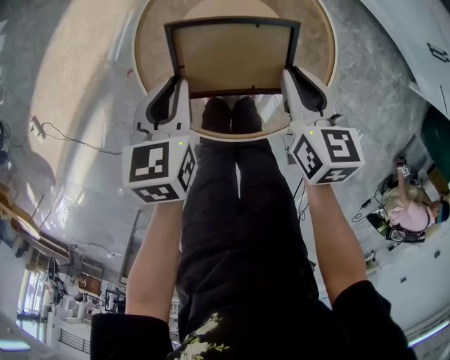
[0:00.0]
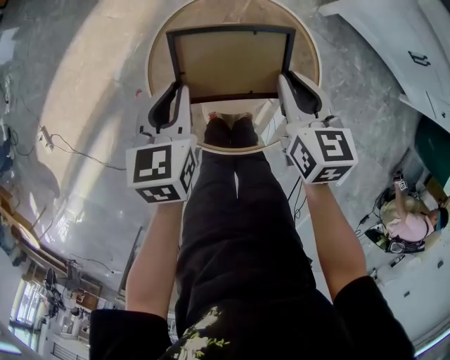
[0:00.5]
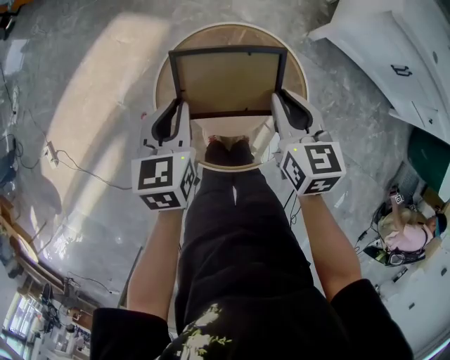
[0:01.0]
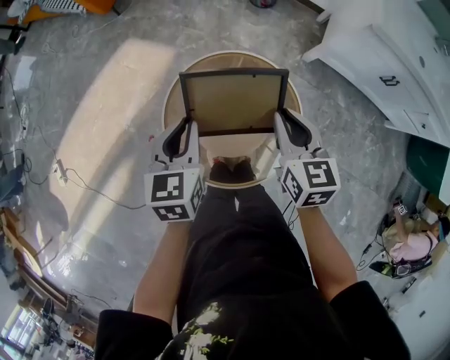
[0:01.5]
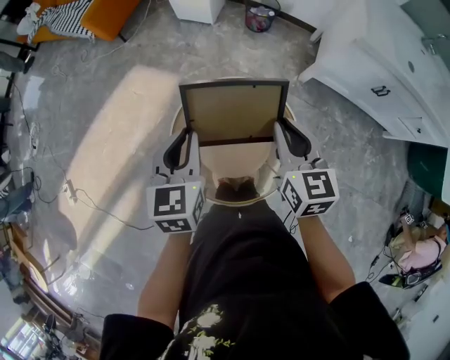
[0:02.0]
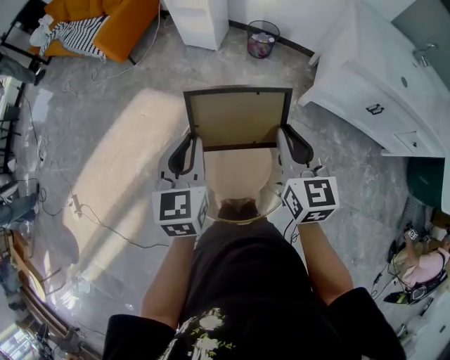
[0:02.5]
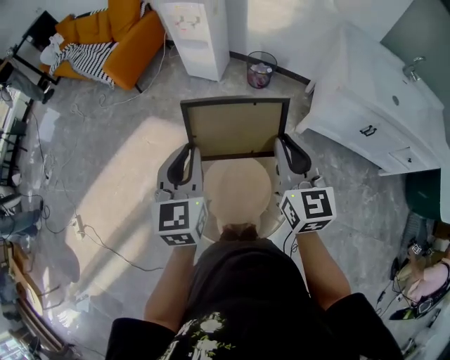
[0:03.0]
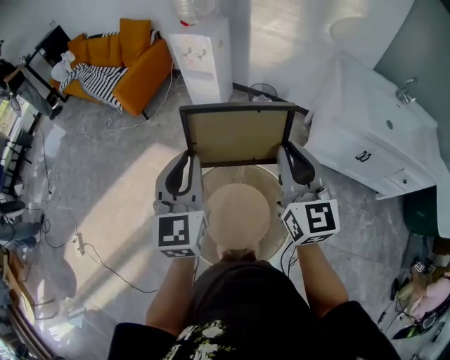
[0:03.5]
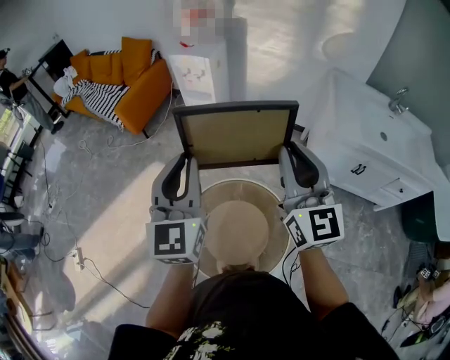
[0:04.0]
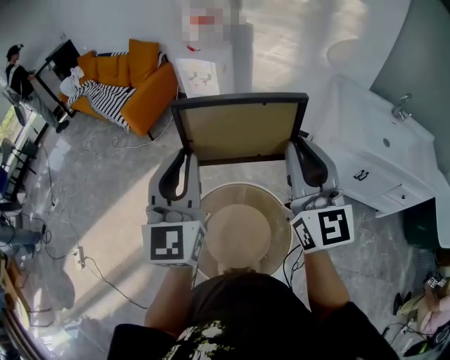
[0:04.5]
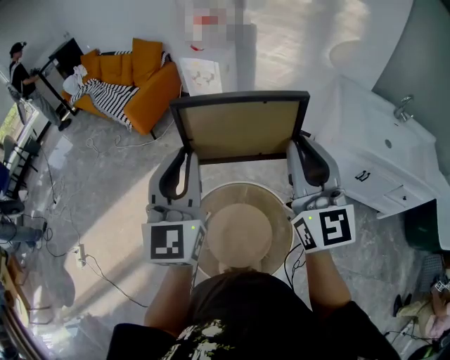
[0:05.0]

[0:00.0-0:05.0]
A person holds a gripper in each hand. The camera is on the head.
0:00.0 to 0:02.5: Both grippers travel together upward, about 40 cm. The left gripper changes its angle by approximately 30 degrees; the right gripper changes its angle by roughly 30 degrees.
0:02.5 to 0:05.0: Both grippers travel together upward, approximately 30 cm. The left gripper tilts its fingers some 30 degrees upward. Meanwhile the right gripper tips its fingers upward by about 30 degrees.

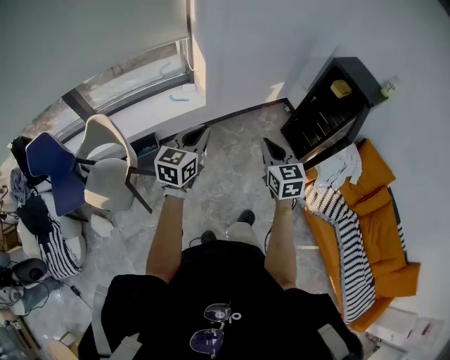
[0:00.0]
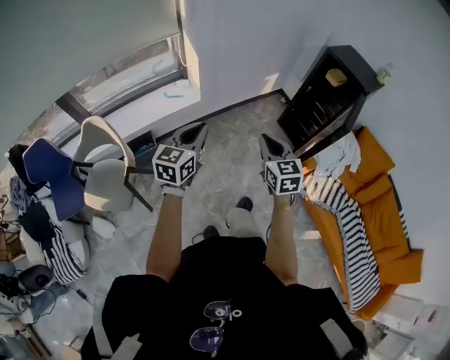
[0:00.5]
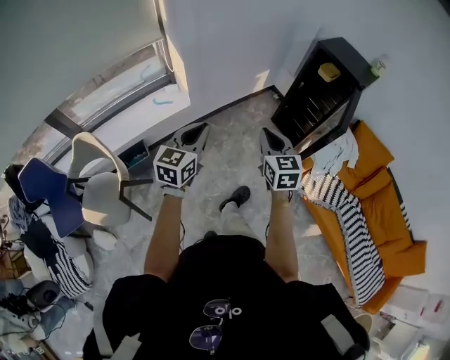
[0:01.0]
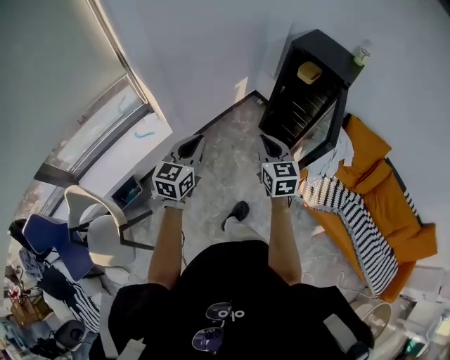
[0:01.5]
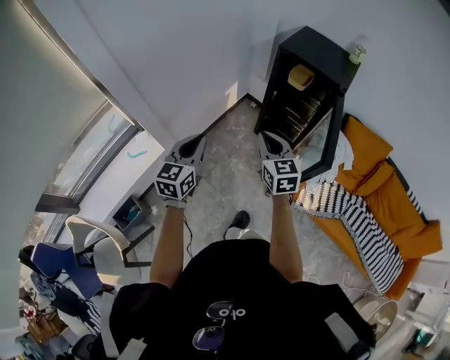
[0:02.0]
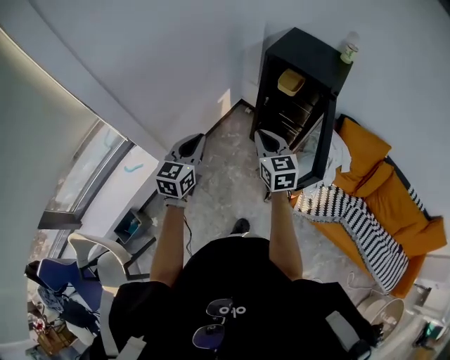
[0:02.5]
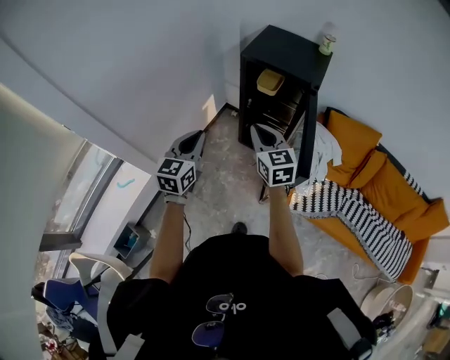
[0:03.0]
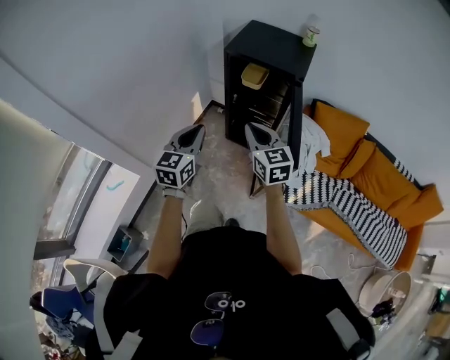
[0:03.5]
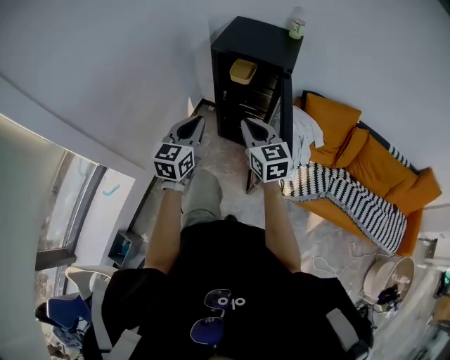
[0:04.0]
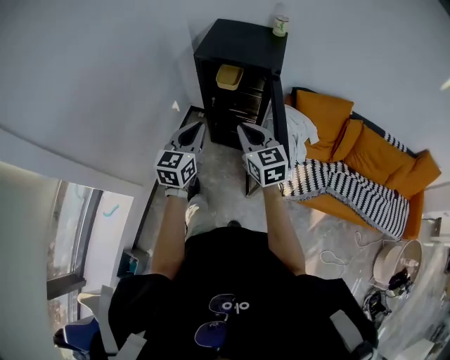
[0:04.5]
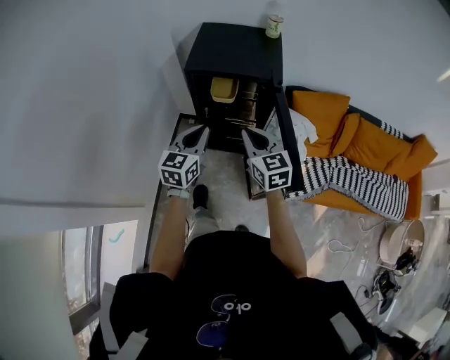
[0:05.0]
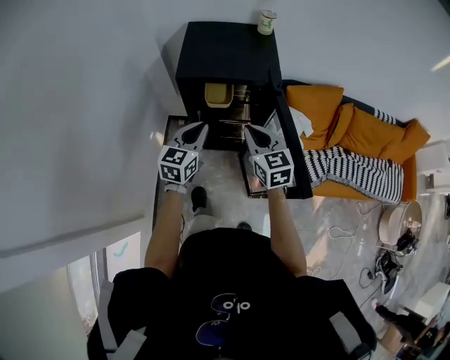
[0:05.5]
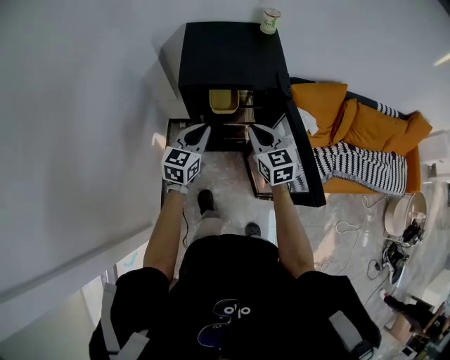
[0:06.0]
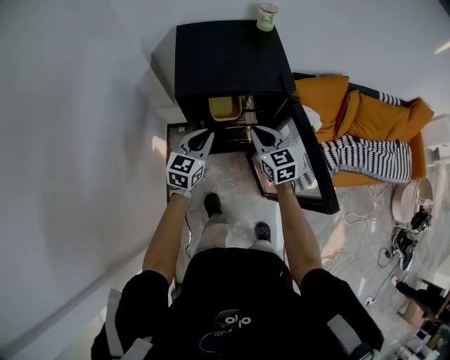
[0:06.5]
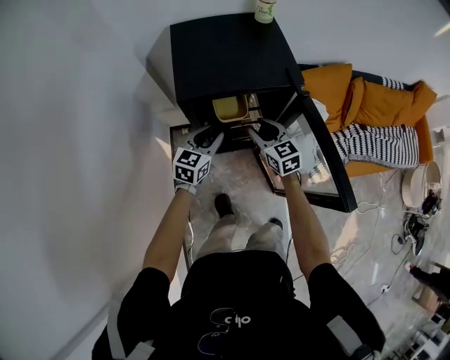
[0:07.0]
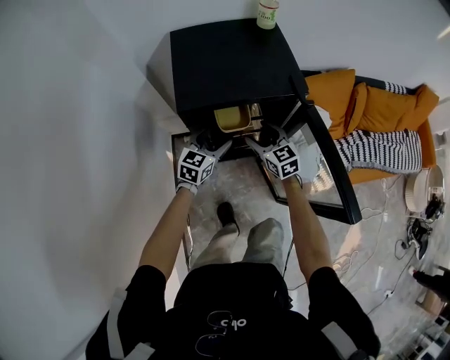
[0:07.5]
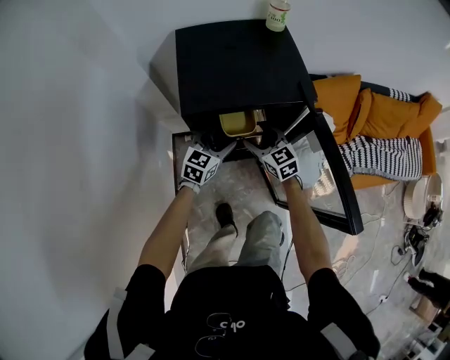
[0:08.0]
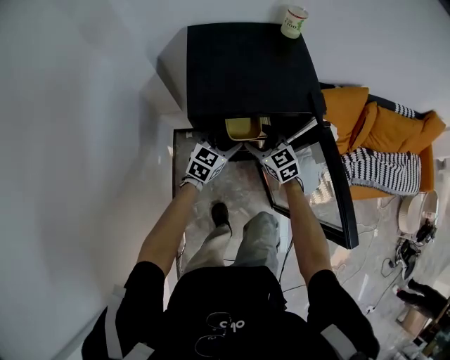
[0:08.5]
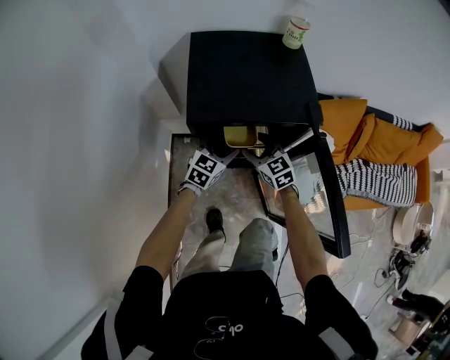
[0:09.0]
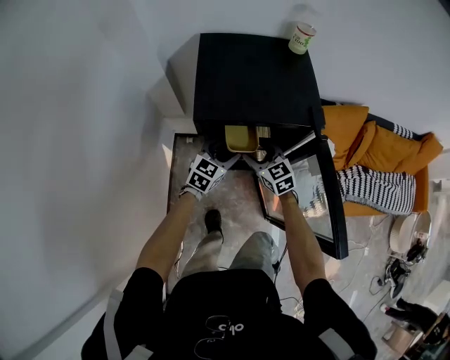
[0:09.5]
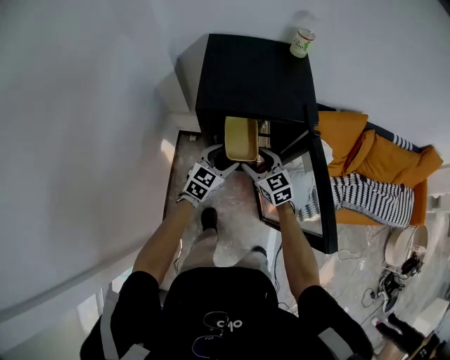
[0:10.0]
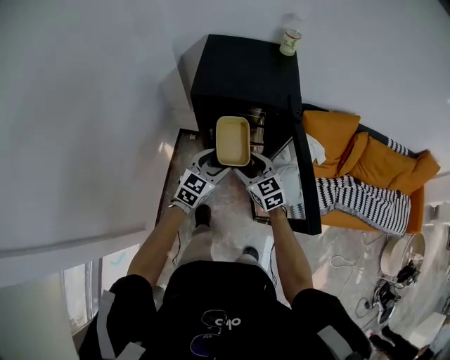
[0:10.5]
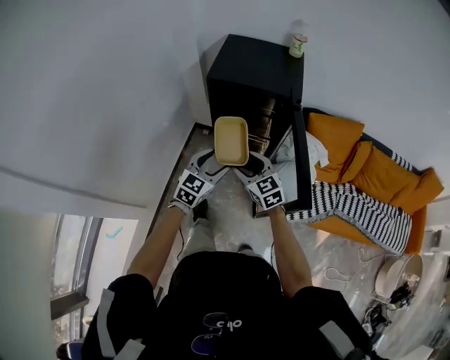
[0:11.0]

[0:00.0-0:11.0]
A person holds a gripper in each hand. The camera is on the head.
0:00.0 to 0:02.0: The grippers both shift forward and to the right by approximately 35 cm. The right gripper swivels roughly 20 degrees.
0:02.0 to 0:03.5: Both grippers travel together to the right and forward, some 15 cm.
0:03.5 to 0:05.5: The grippers both shift forward by about 20 cm. The right gripper swivels approximately 20 degrees. The left gripper rotates approximately 30 degrees.
0:05.5 to 0:07.5: Both grippers move downward and forward, roughly 20 cm. The right gripper opens; the left gripper rotates roughly 20 degrees, and opens up.
0:07.5 to 0:09.0: The right gripper changes place by approximately 5 cm.
0:09.0 to 0:11.0: Both grippers move backward and upward, about 30 cm.

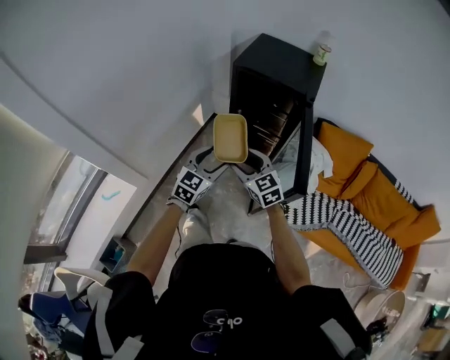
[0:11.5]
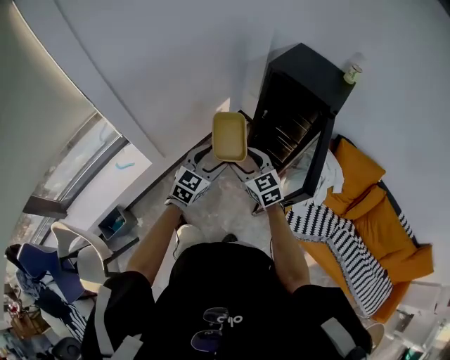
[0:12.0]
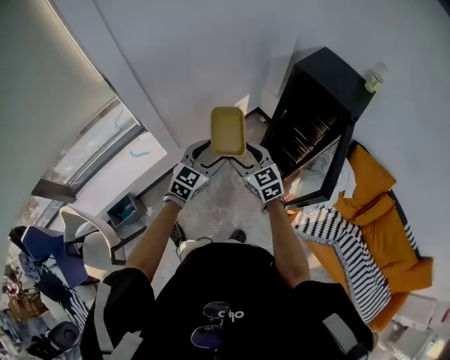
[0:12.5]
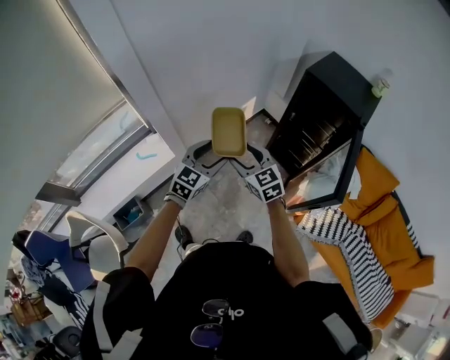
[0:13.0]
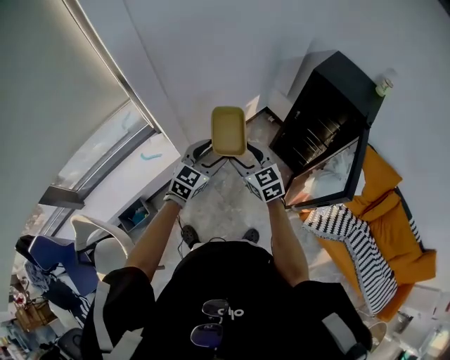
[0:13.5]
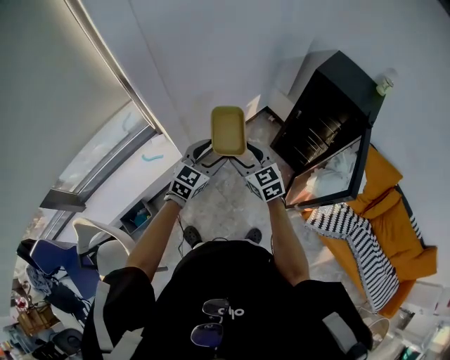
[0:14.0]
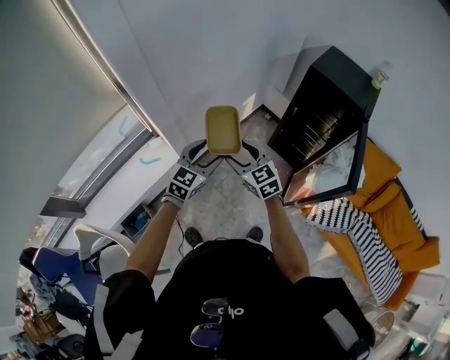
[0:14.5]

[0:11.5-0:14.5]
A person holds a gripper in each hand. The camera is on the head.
0:11.5 to 0:13.0: The two grippers go approximately 20 cm to the left.
0:13.0 to 0:14.5: Both grippers travel together to the left, approximately 10 cm.

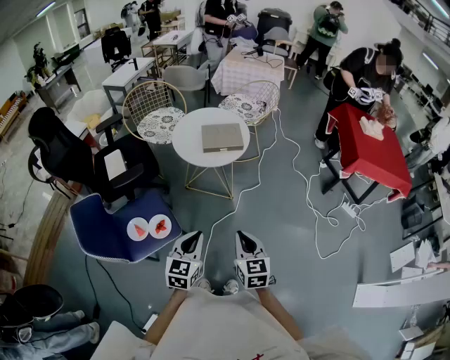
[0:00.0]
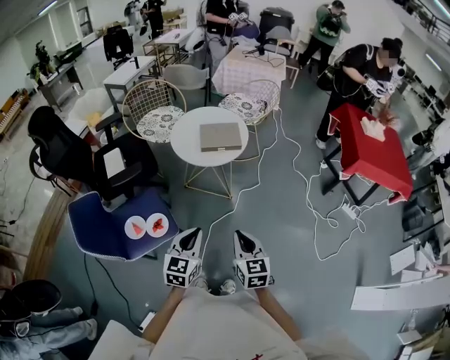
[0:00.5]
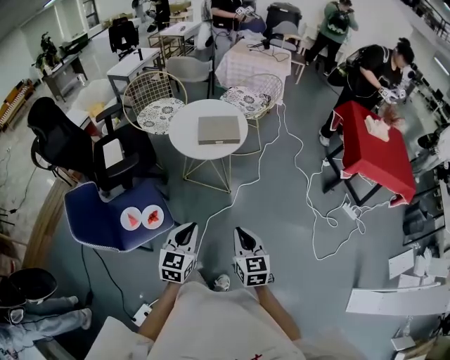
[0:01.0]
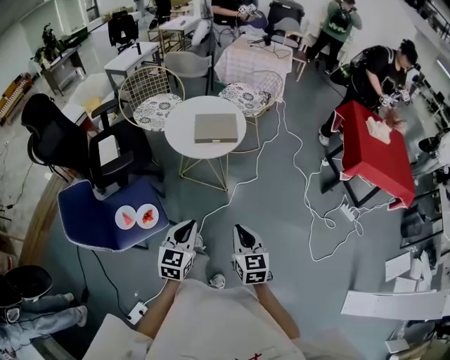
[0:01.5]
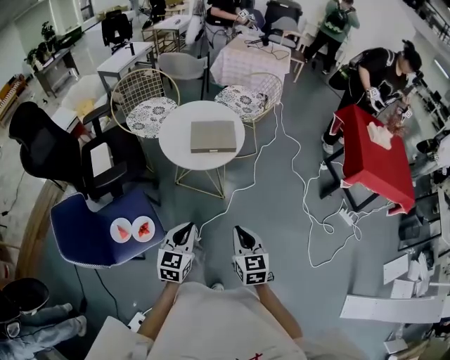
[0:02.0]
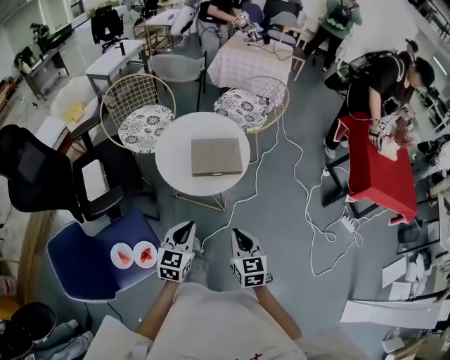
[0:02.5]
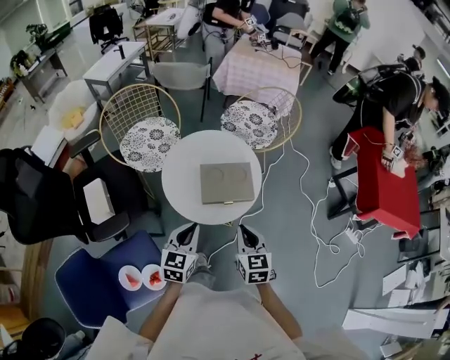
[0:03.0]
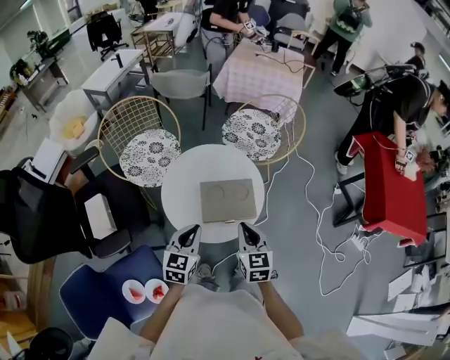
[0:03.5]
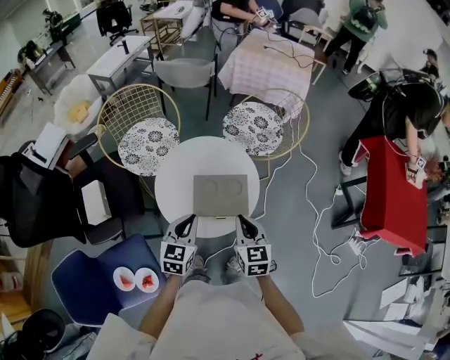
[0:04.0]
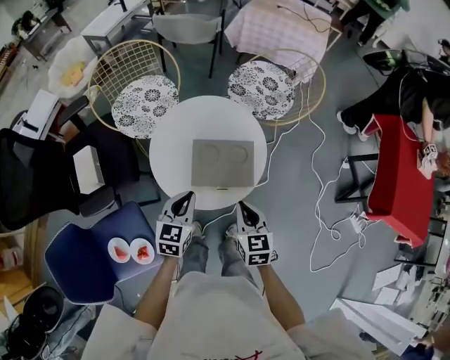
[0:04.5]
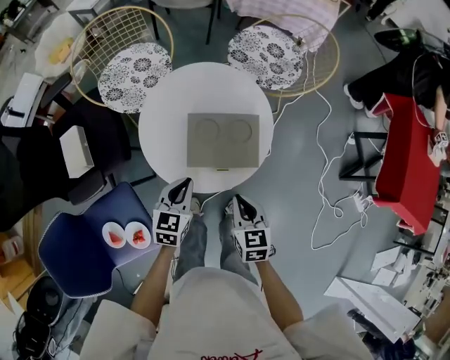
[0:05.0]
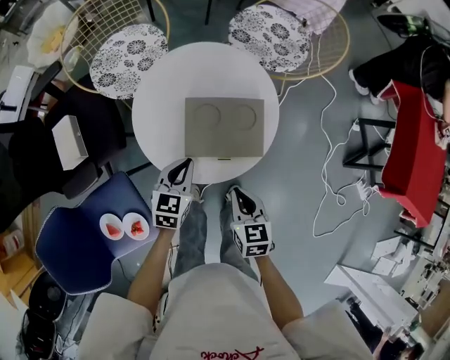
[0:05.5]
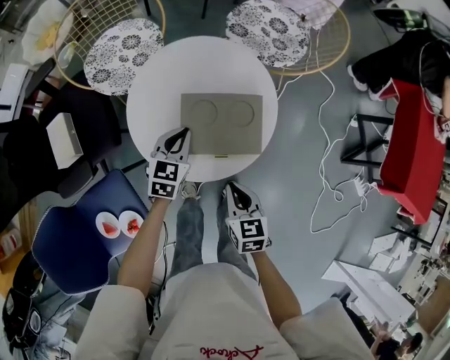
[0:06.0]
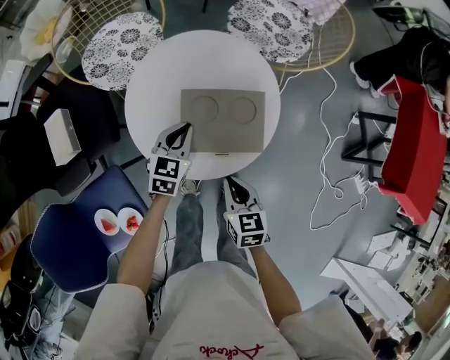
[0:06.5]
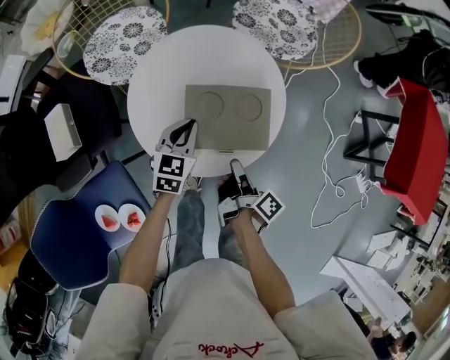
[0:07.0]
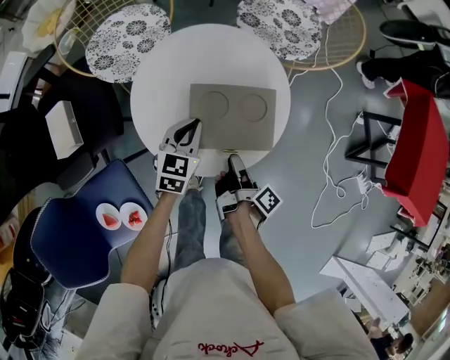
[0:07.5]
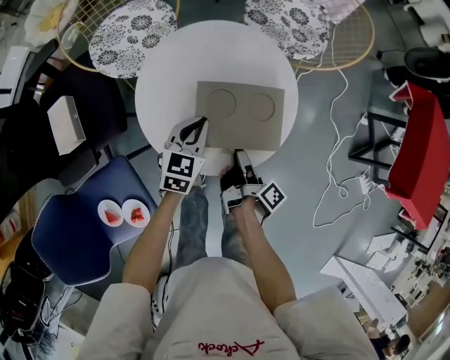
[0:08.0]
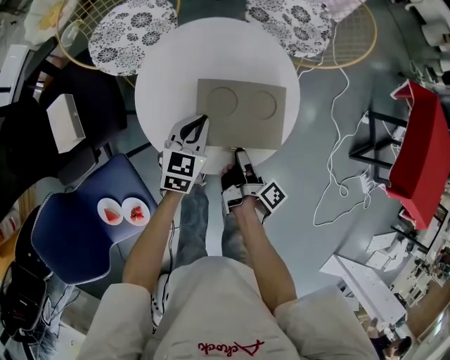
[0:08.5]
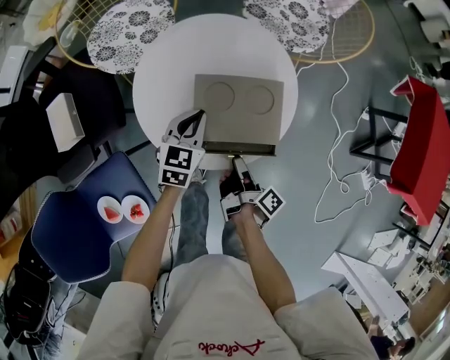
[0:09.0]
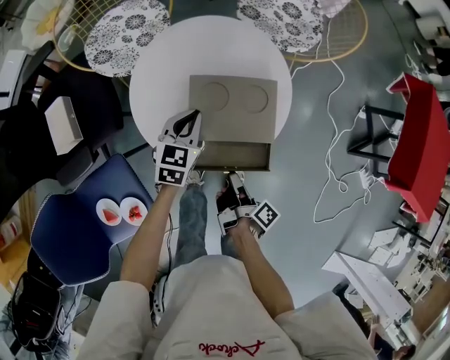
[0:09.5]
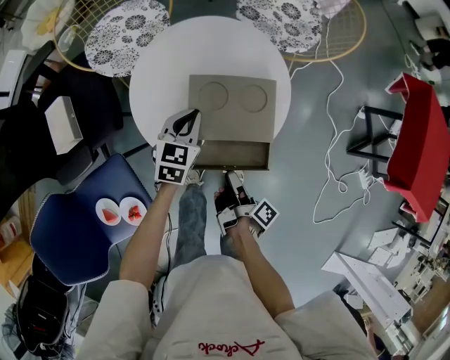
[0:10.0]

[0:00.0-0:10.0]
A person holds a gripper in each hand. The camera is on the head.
0:00.0 to 0:02.0: The left gripper travels forward by roughly 10 cm; the right gripper moves forward and to the right, some 10 cm.
0:02.0 to 0:04.0: Both grippers move forward, about 40 cm.
0:04.0 to 0:06.0: The left gripper moves downward and forward, roughly 20 cm. The right gripper goes some 15 cm downward.
0:06.0 to 0:08.0: The right gripper heads forward and downward, covering approximately 10 cm, rolls clockwise, seen from behind, by about 90 degrees, and opens its fingers.
0:08.0 to 0:10.0: The right gripper shifts some 10 cm backward.
